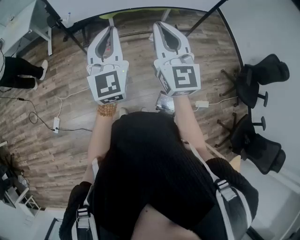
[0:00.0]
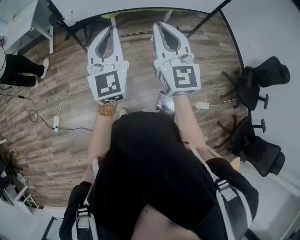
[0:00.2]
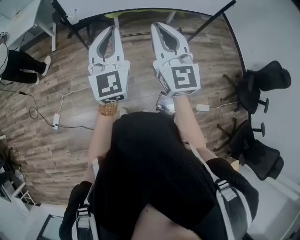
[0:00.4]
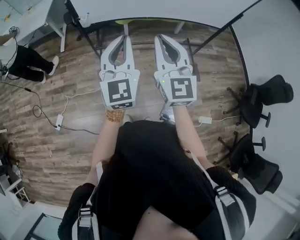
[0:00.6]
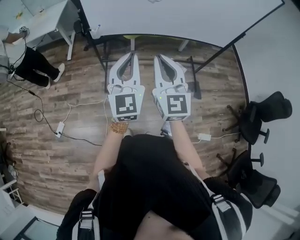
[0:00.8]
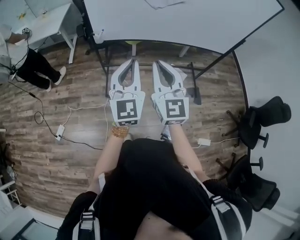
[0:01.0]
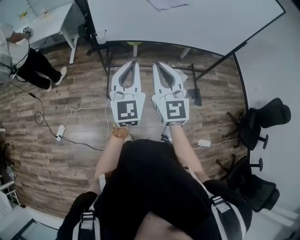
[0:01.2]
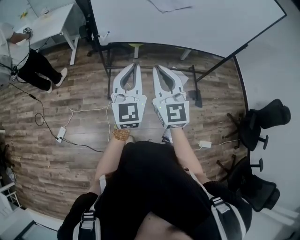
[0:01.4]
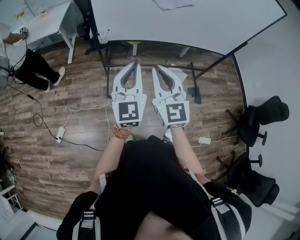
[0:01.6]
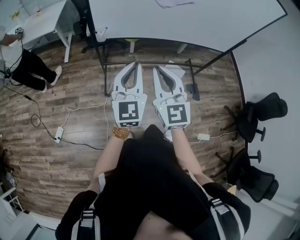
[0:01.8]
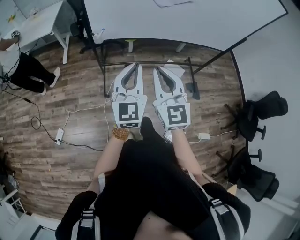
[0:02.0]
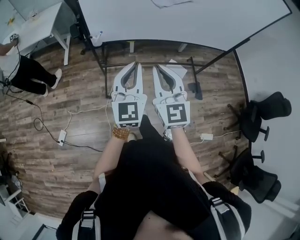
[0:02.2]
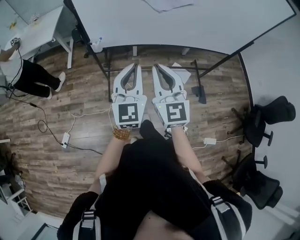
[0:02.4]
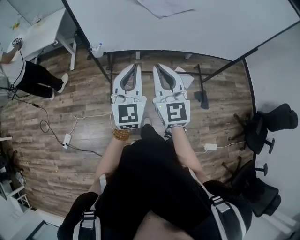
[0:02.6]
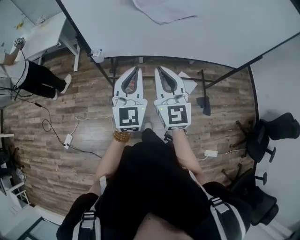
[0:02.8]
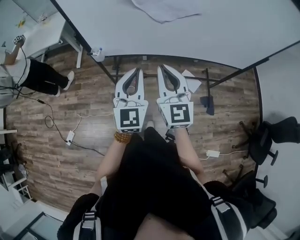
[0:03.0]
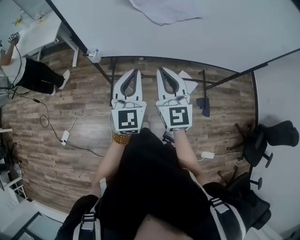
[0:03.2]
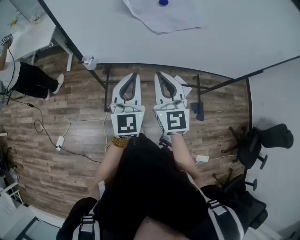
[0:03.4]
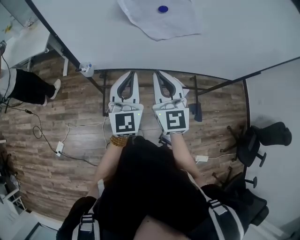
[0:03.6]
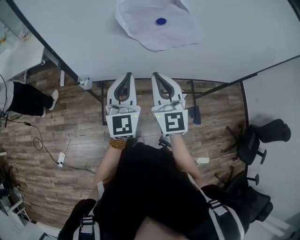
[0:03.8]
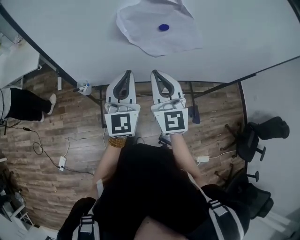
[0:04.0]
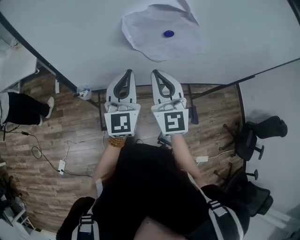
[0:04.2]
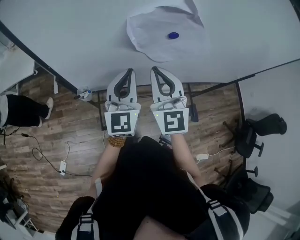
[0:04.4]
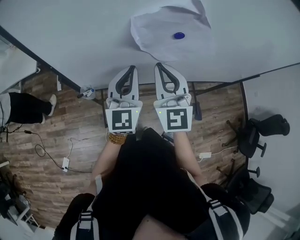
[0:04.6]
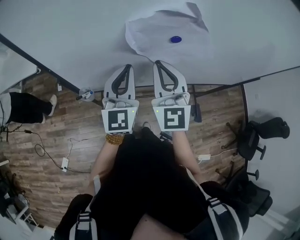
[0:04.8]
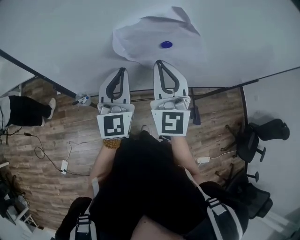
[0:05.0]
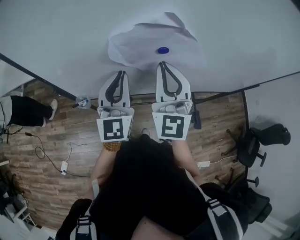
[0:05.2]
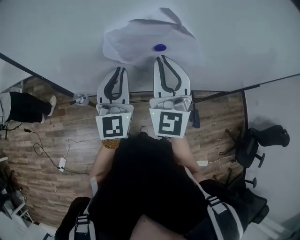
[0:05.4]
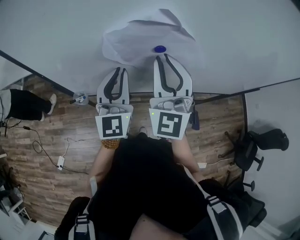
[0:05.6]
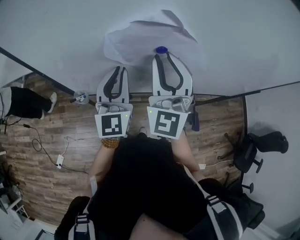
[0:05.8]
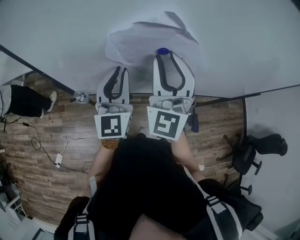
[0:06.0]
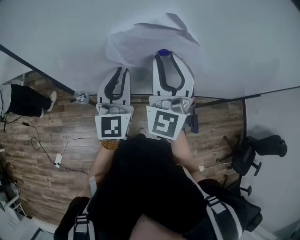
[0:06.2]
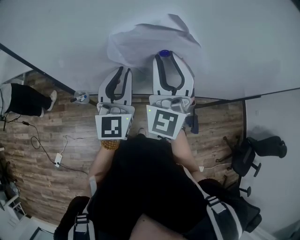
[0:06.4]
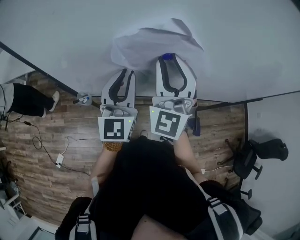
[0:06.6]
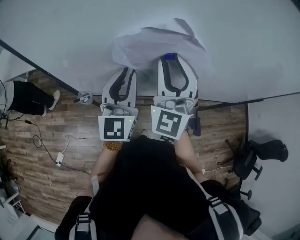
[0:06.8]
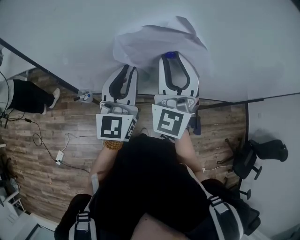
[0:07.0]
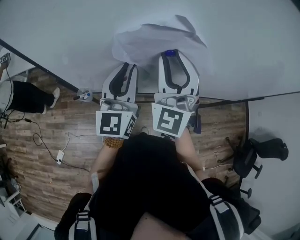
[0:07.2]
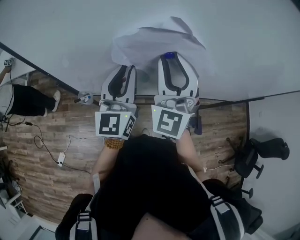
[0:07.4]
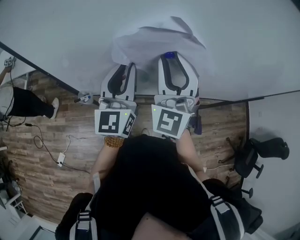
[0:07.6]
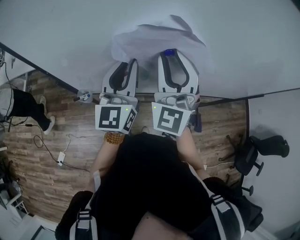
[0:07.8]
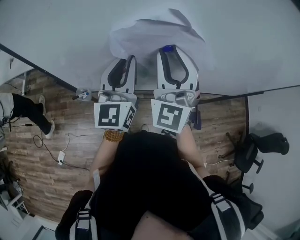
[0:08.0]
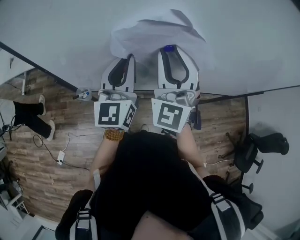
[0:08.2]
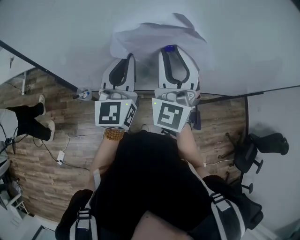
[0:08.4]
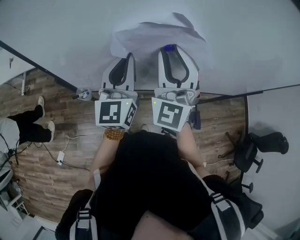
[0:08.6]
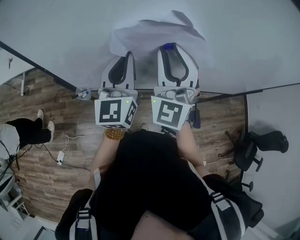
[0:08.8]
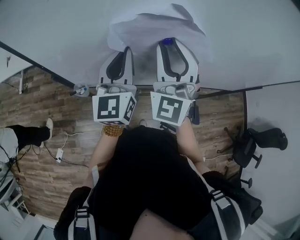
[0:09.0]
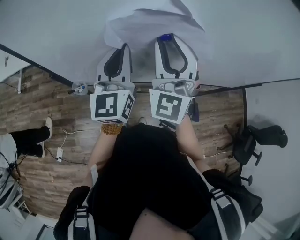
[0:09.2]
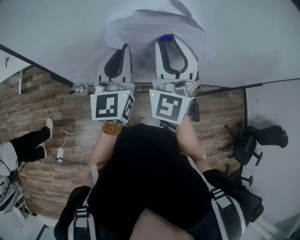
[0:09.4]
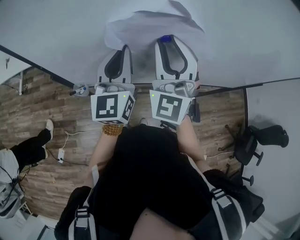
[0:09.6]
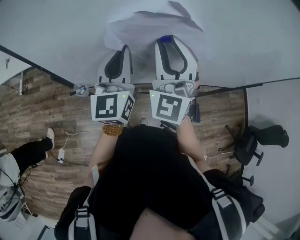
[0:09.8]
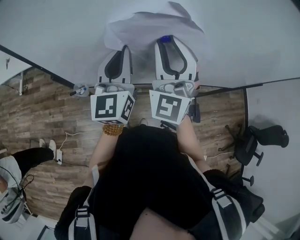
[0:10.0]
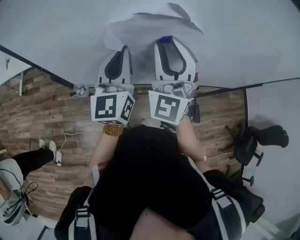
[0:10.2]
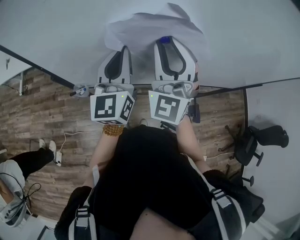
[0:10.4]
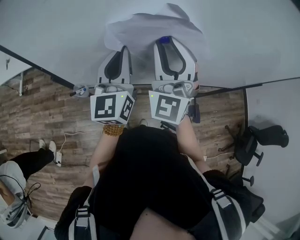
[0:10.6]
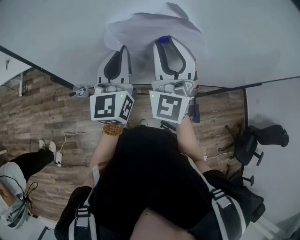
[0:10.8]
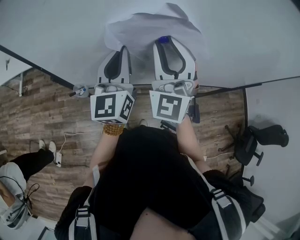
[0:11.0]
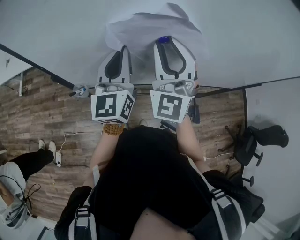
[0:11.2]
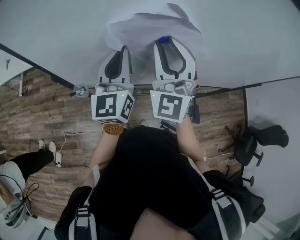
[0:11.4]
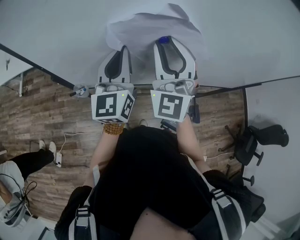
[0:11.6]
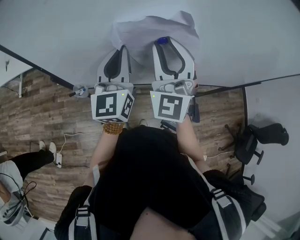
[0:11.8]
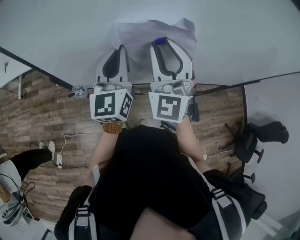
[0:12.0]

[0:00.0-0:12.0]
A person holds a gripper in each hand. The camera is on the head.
0:00.0 to 0:01.6: The left gripper heads to the left, covering approximately 10 cm. The right gripper travels to the left by some 15 cm.
0:01.6 to 0:03.0: The two grippers go some 20 cm forward and to the right.
0:03.0 to 0:04.4: Both grippers travel together forward, about 20 cm.
0:04.4 to 0:06.0: The right gripper goes about 10 cm upward and forward, and opens.
0:06.0 to 0:07.6: The grippers make only small movements.
0:07.6 to 0:12.0: Neither gripper changes place.

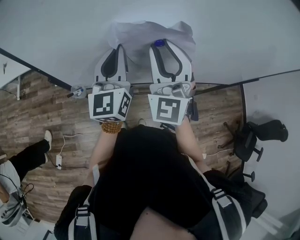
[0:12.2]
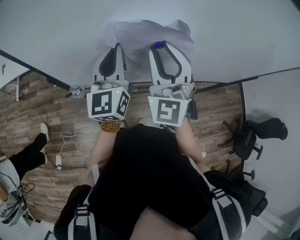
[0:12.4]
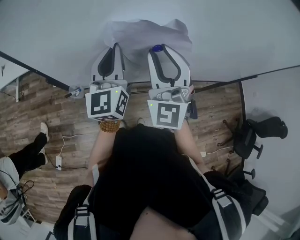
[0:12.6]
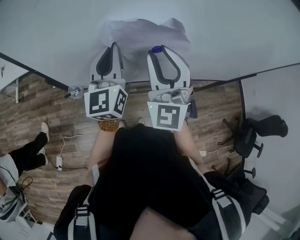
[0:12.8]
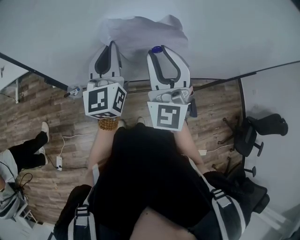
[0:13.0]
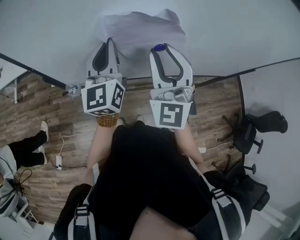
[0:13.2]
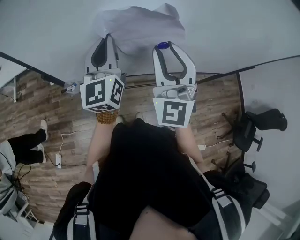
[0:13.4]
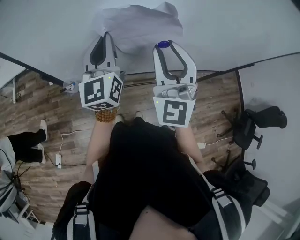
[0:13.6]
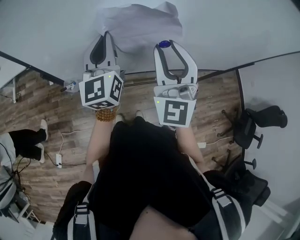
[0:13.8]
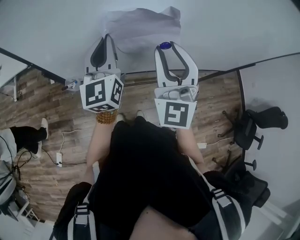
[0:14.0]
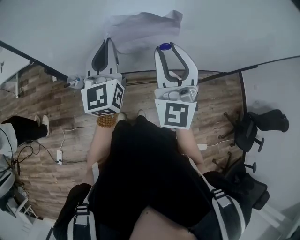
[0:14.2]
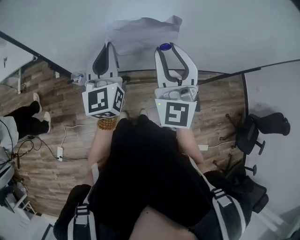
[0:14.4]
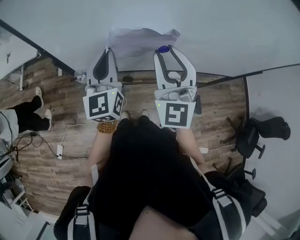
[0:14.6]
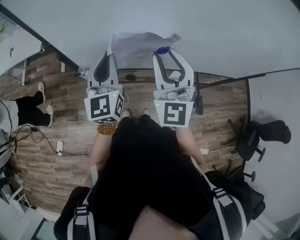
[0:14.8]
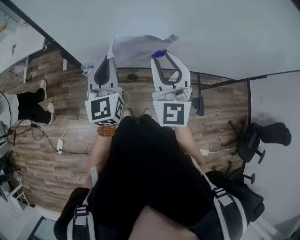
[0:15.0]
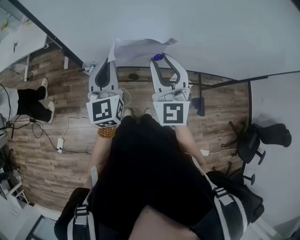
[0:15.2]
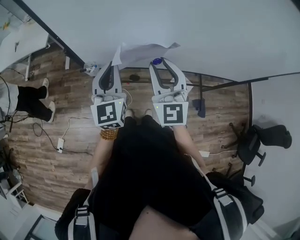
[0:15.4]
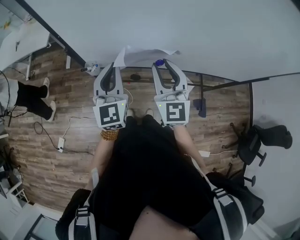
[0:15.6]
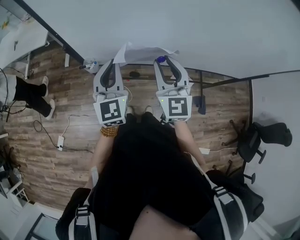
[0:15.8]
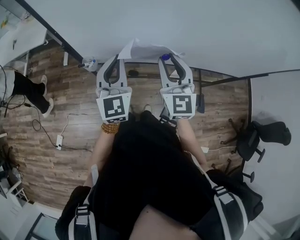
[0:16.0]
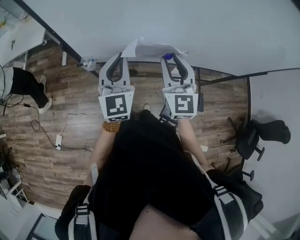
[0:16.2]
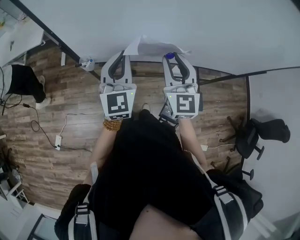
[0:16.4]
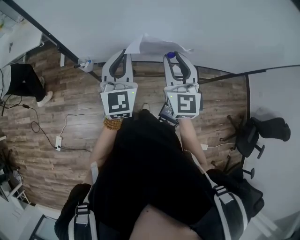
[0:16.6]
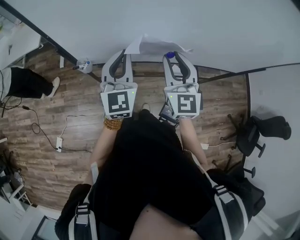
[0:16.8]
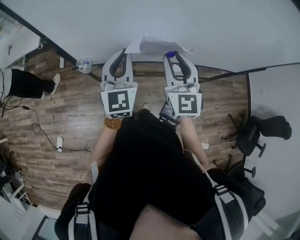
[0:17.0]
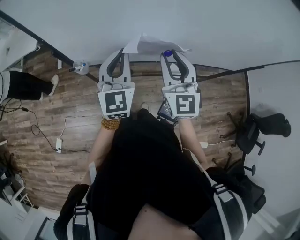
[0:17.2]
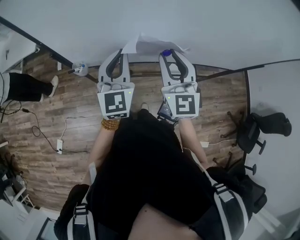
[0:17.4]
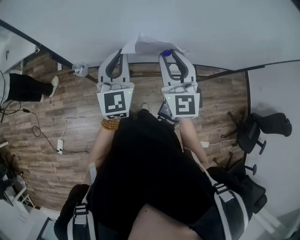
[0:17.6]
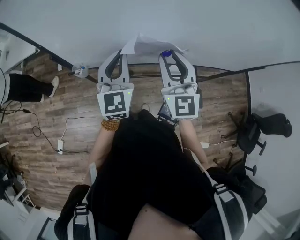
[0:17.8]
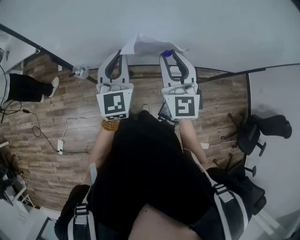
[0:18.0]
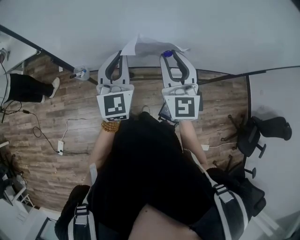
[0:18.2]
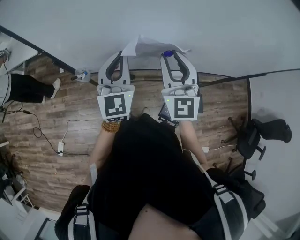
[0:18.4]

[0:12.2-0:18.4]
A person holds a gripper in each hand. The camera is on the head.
0:12.2 to 0:13.8: The right gripper shifts roughly 5 cm backward.
0:13.8 to 0:15.4: The right gripper goes some 15 cm downward and to the left, and rotates roughly 20 degrees; the left gripper is displaced backward, to the left and downward by some 15 cm.
0:15.4 to 0:16.8: Both grippers travel together to the right, approximately 5 cm.
0:16.8 to 0:18.4: The right gripper ends up about 5 cm from where it was.

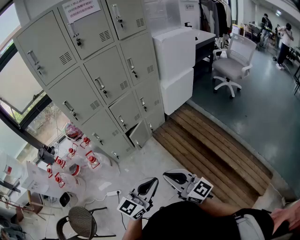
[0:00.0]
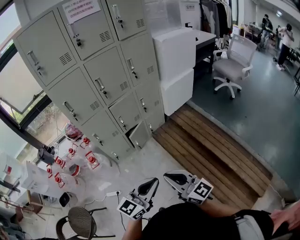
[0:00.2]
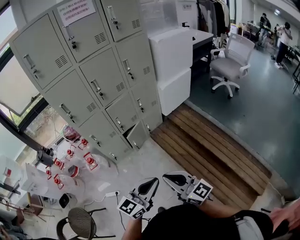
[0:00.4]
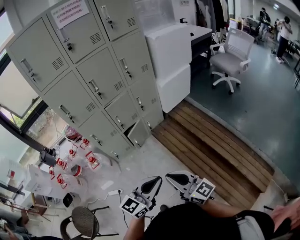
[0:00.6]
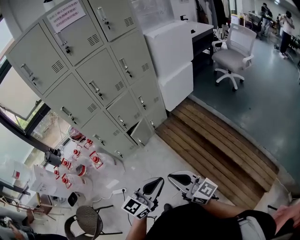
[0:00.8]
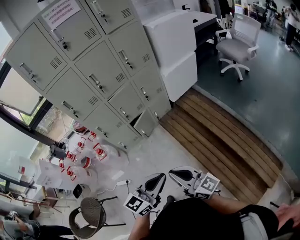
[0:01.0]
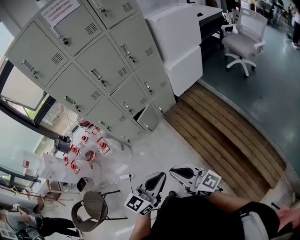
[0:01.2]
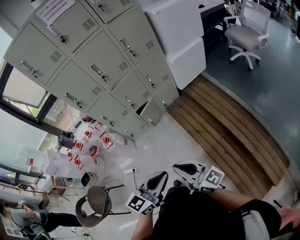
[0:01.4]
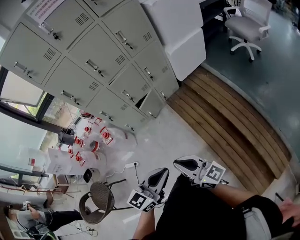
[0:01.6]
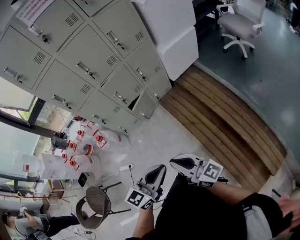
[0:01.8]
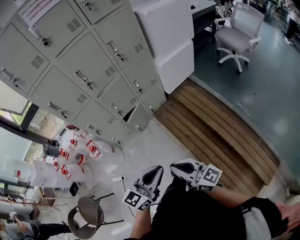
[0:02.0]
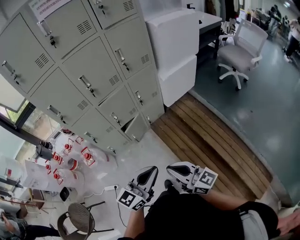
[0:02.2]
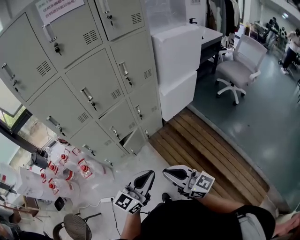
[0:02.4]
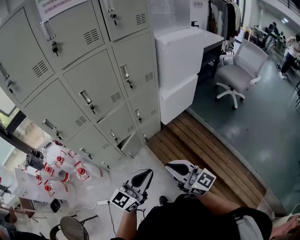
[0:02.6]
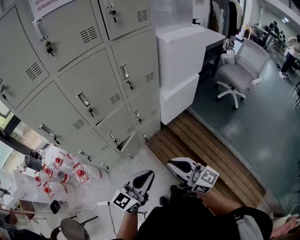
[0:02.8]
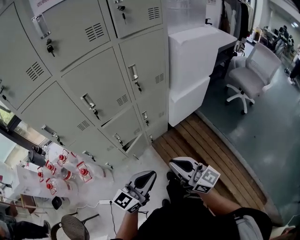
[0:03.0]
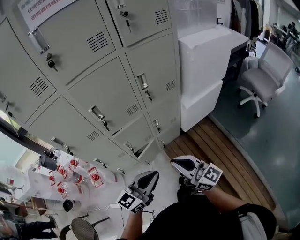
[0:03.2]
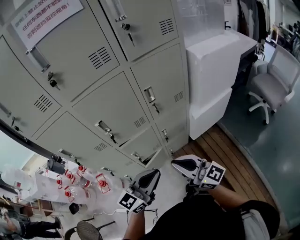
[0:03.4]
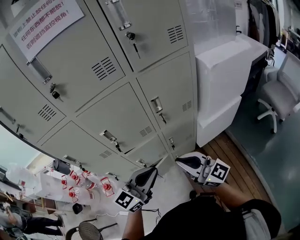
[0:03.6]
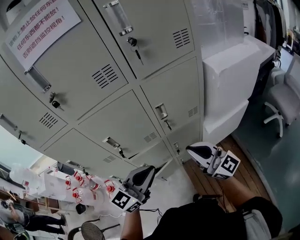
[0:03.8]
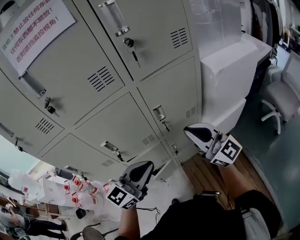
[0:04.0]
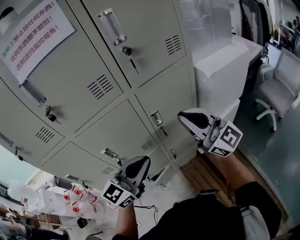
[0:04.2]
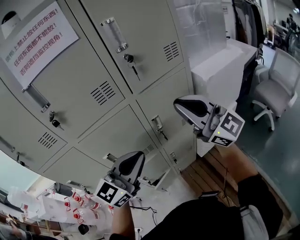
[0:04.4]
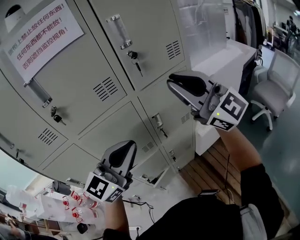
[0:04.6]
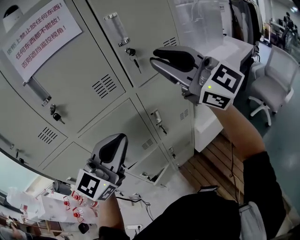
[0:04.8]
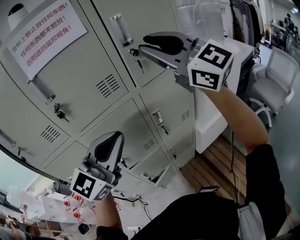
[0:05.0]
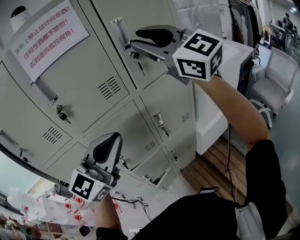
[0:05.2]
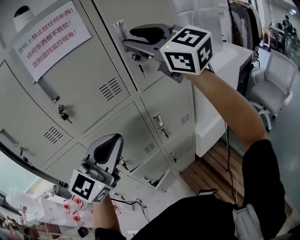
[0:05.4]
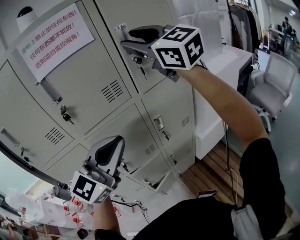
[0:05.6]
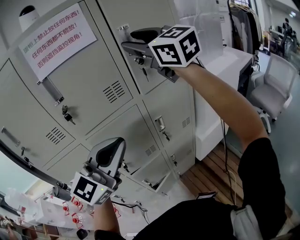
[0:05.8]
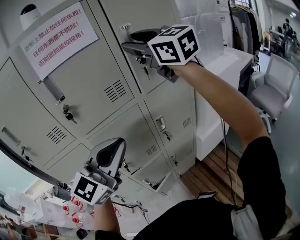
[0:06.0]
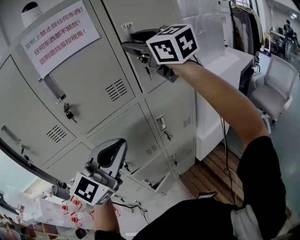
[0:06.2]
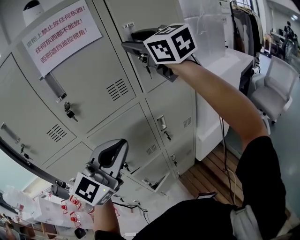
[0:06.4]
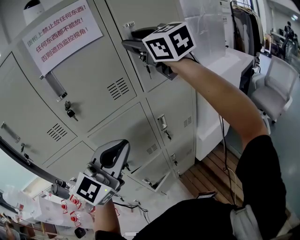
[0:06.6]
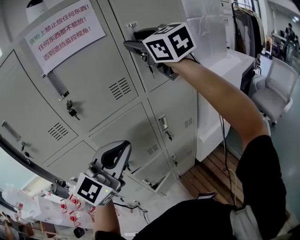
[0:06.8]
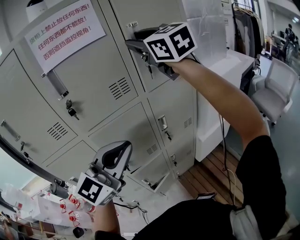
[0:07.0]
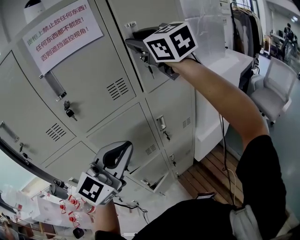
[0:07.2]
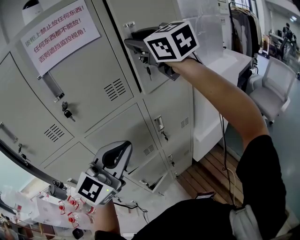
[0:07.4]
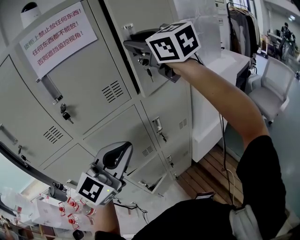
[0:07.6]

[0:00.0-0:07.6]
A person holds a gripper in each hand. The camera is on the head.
0:00.0 to 0:01.6: The left gripper shifts approximately 10 cm to the right; the right gripper travels to the right and downward by about 10 cm.
0:01.6 to 0:03.0: Both grippers travel together forward, roughly 35 cm.
0:03.0 to 0:04.6: The right gripper is displaced upward and forward by approximately 50 cm, and turns by some 40 degrees. Meanwhile the left gripper shifts about 40 cm forward and upward, and changes its angle by approximately 30 degrees.
0:04.6 to 0:06.0: The right gripper moves upward, forward and to the left, approximately 20 cm, and opens. Meanwhile the left gripper goes approximately 5 cm upward.
0:06.0 to 0:07.6: The grippers move only a little.
